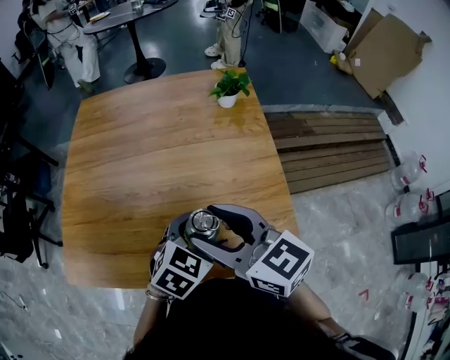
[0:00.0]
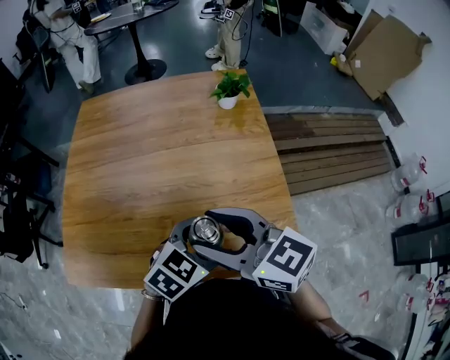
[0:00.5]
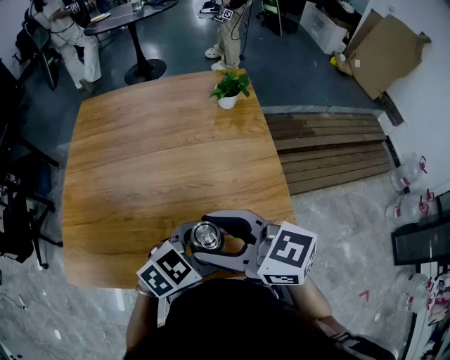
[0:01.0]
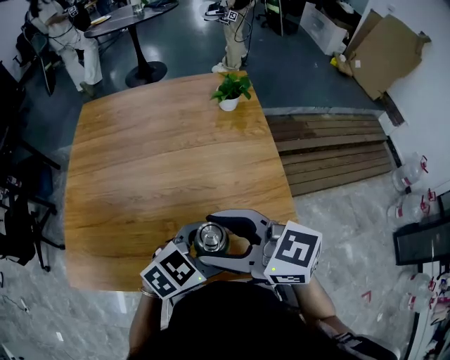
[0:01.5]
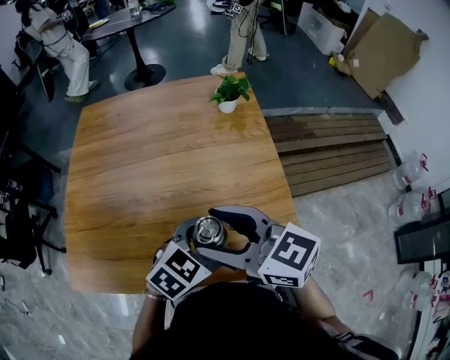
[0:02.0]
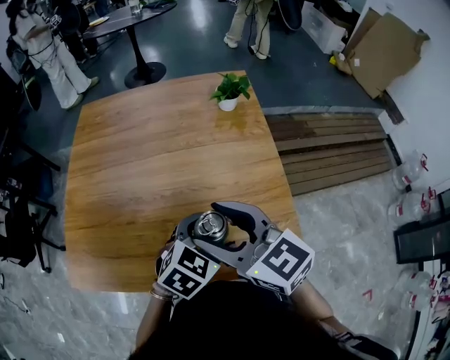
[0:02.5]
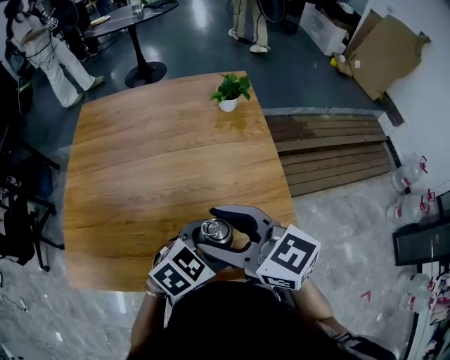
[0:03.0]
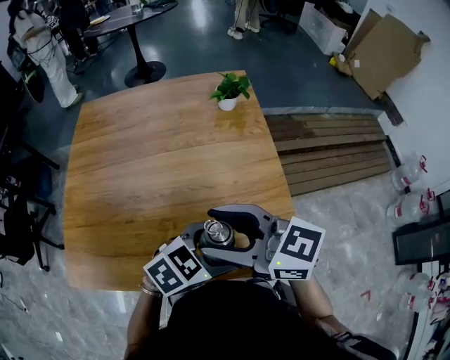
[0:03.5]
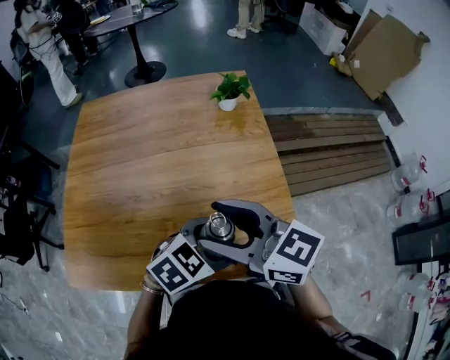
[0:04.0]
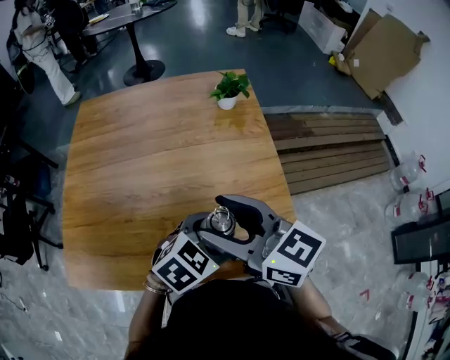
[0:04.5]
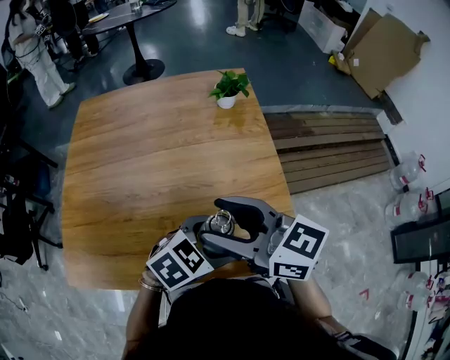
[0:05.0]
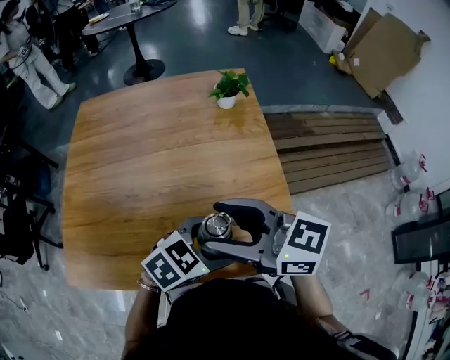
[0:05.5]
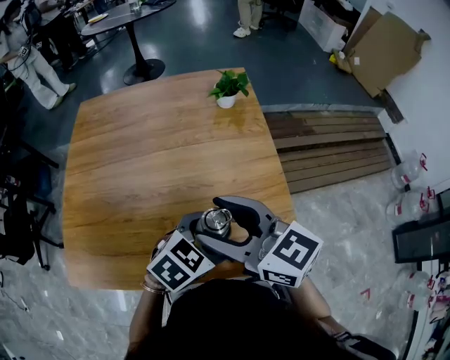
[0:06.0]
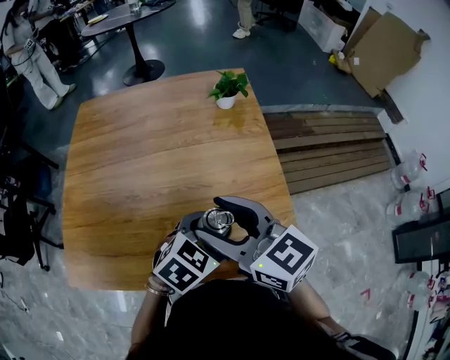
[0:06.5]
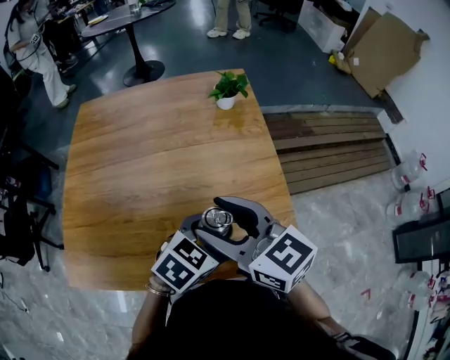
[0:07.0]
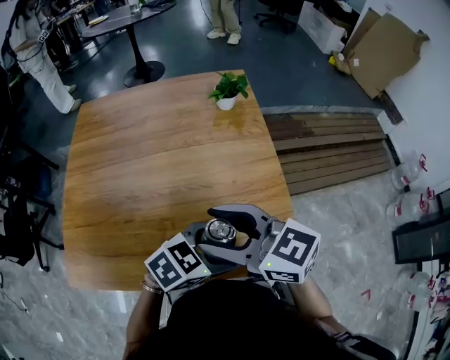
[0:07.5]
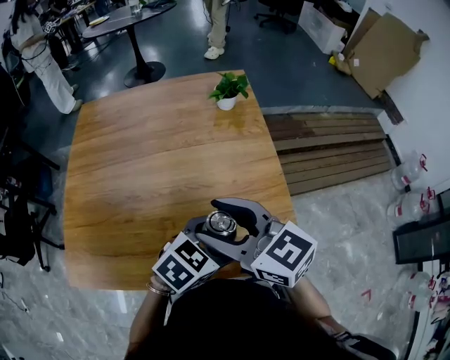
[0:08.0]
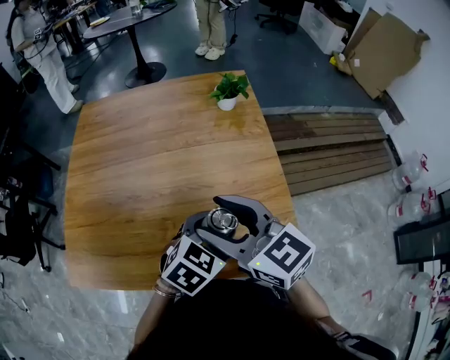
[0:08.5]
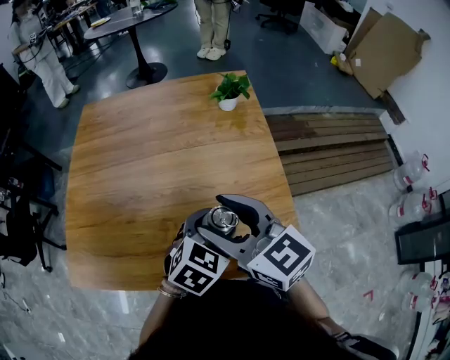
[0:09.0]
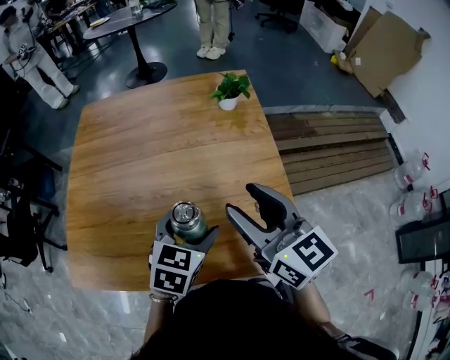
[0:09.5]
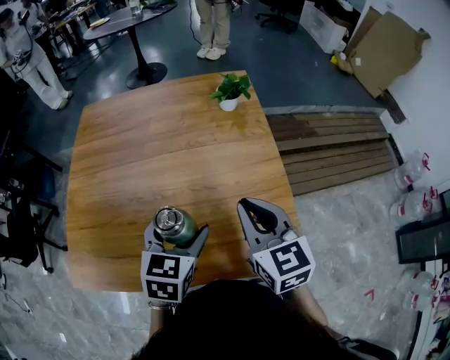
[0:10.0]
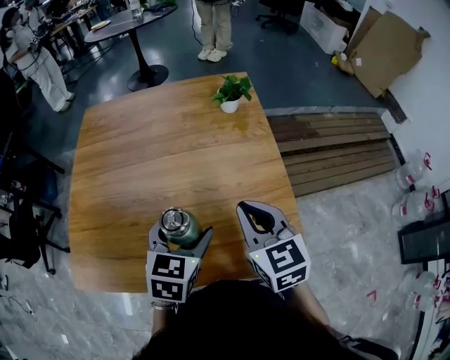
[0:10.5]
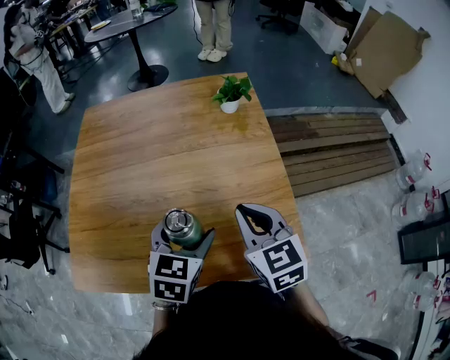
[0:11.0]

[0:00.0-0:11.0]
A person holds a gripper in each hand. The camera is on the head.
0:02.0 to 0:03.5: The grippers stay close to where they were, moving slightly.
0:05.5 to 0:07.5: There are only small adjustments of the grippers.
0:07.5 to 0:09.0: The left gripper moves approximately 5 cm, and turns by roughly 30 degrees.
0:09.0 to 0:11.0: The left gripper is displaced to the left by roughly 10 cm, and changes its angle by some 20 degrees; the right gripper goes approximately 10 cm downward and to the right, turns by approximately 30 degrees, and closes up.

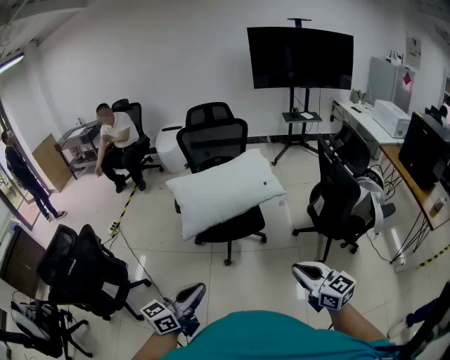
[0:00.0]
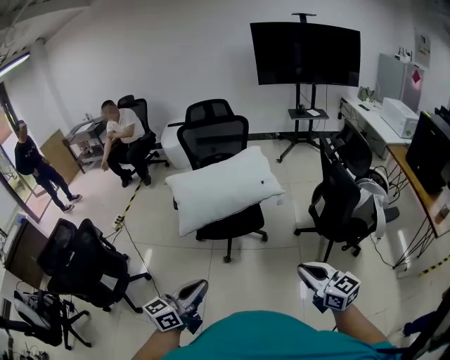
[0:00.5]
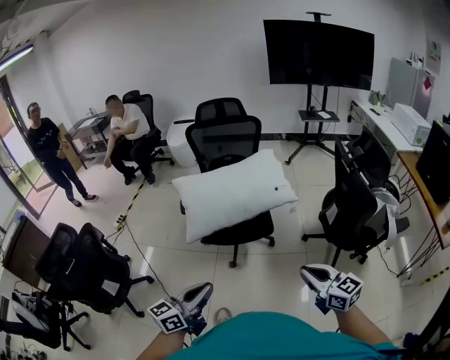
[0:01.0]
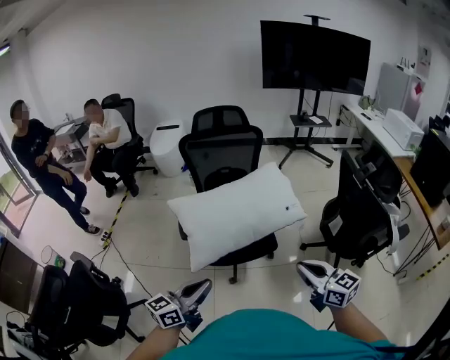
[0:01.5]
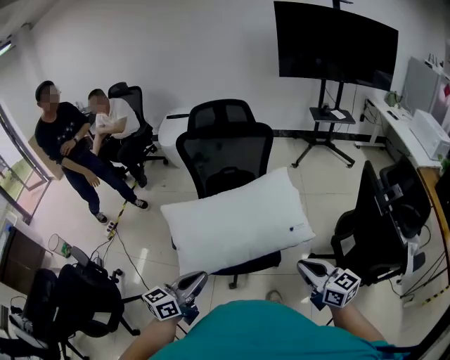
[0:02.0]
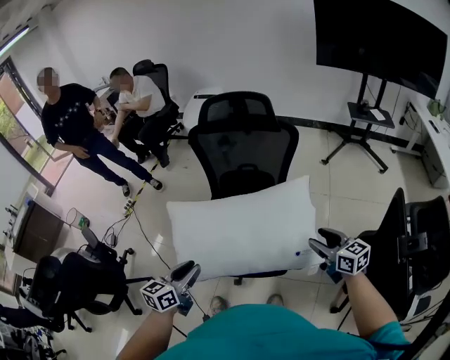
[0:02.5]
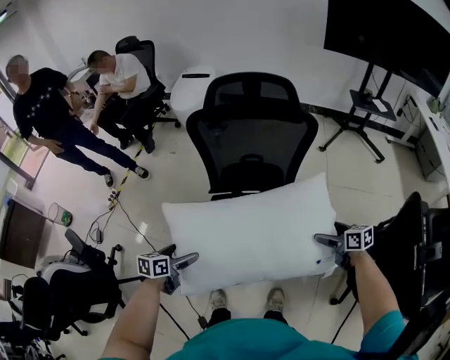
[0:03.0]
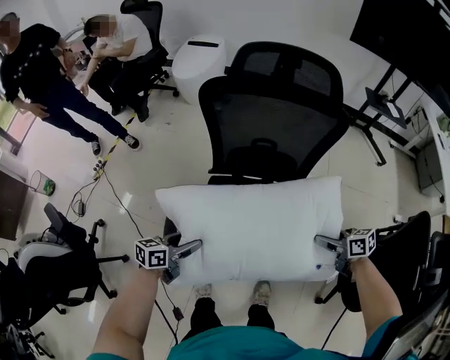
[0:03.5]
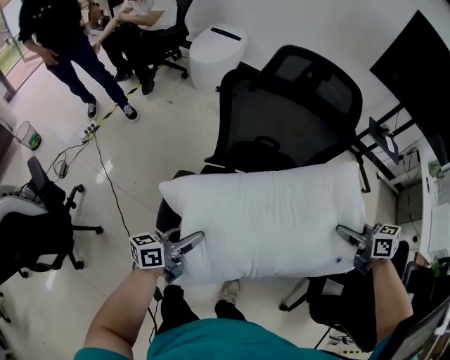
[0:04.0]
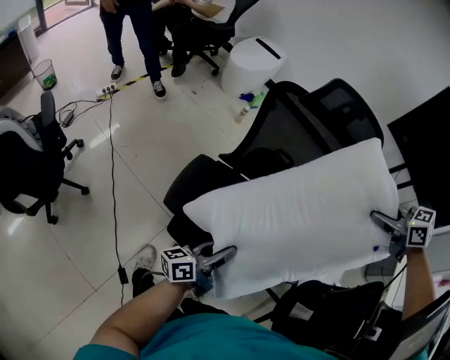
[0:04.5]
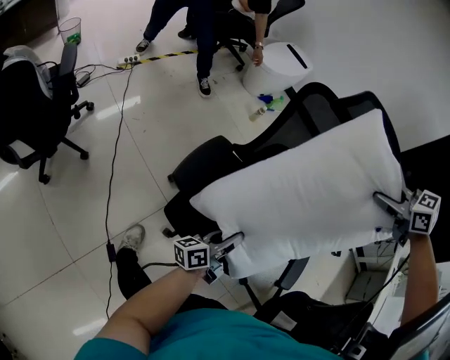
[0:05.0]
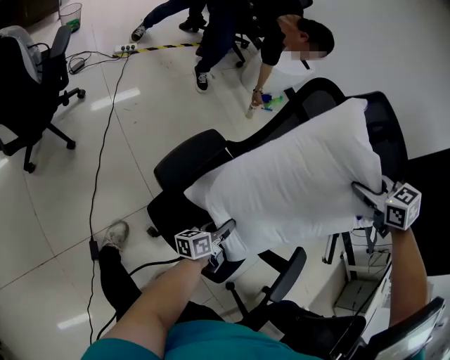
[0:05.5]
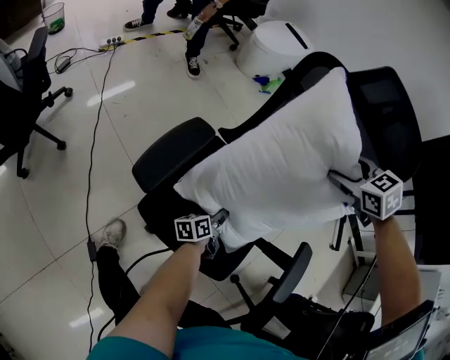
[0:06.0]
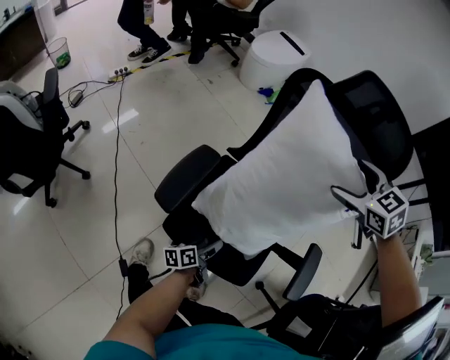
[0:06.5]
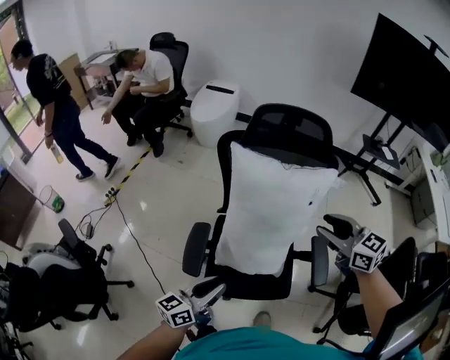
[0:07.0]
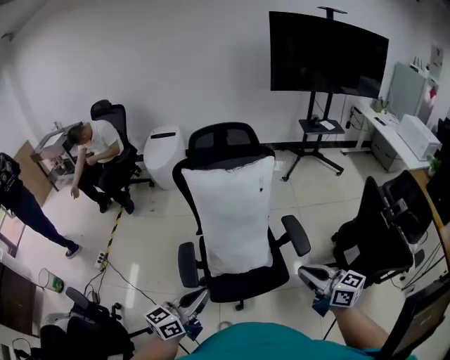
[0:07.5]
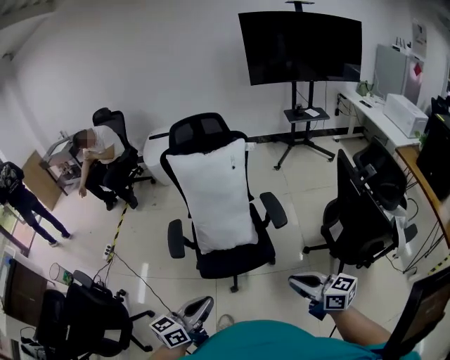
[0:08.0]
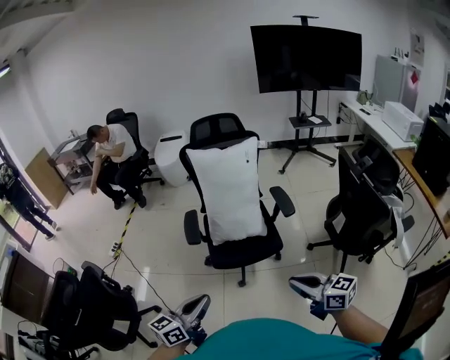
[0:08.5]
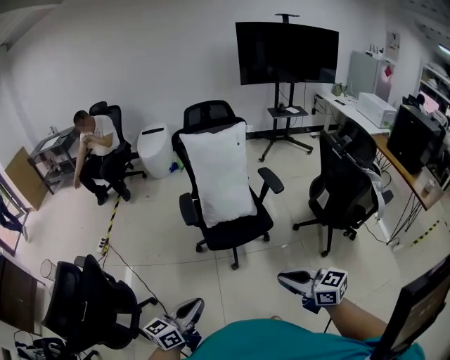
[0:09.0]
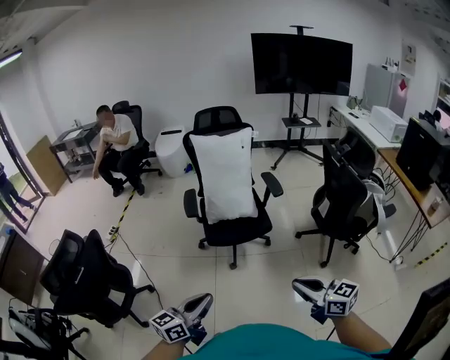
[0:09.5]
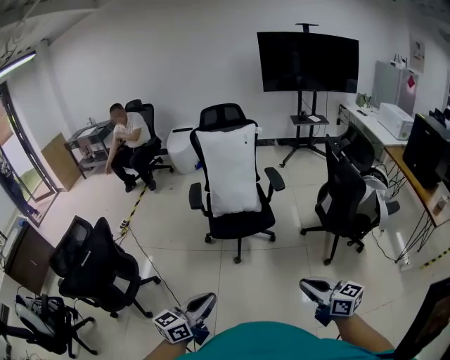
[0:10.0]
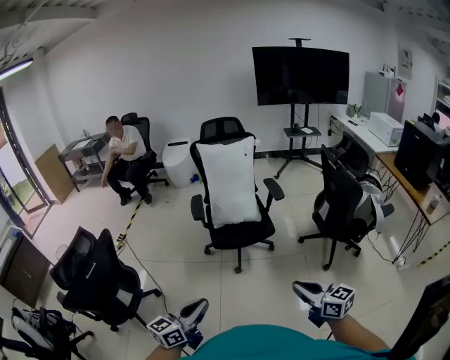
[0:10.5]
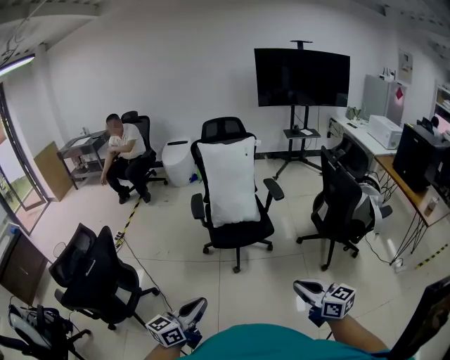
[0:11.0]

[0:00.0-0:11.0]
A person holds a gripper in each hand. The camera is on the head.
0:00.0 to 0:02.0: The grippers both shift forward by some 35 cm.
0:02.0 to 0:03.5: The two grippers go roughly 35 cm forward and downward. The right gripper rotates about 40 degrees, and opens, then closes once more. The left gripper rotates roughly 30 degrees, and opens.
0:03.5 to 0:05.5: The left gripper travels to the right and downward by approximately 20 cm, and turns by roughly 60 degrees. The right gripper heads forward and upward, covering roughly 35 cm, and rotates around the line of its fingers by roughly 70 degrees, counterclockwise from behind.
0:05.5 to 0:07.5: The right gripper reaches about 10 cm downward, then returns, angles its fingers upward, by about 50 degrees, and opens and closes again. The left gripper moves upward, some 35 cm, rotates approximately 70 degrees, and opens, then closes once more.
0:07.5 to 0:09.0: The two grippers travel together, backward, approximately 40 cm.
0:09.0 to 0:11.0: The left gripper goes some 15 cm backward. The right gripper heads backward and to the right, covering approximately 20 cm.

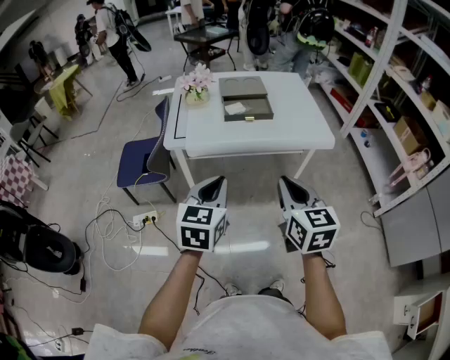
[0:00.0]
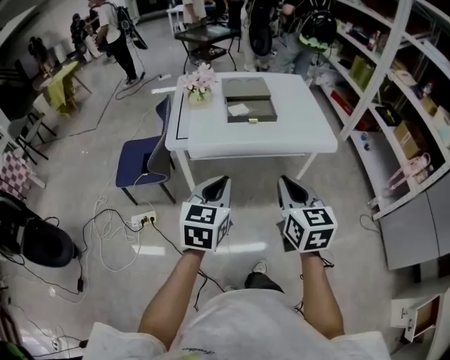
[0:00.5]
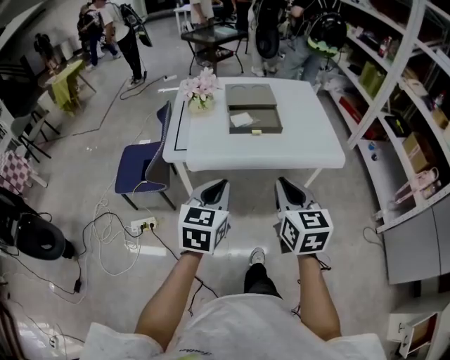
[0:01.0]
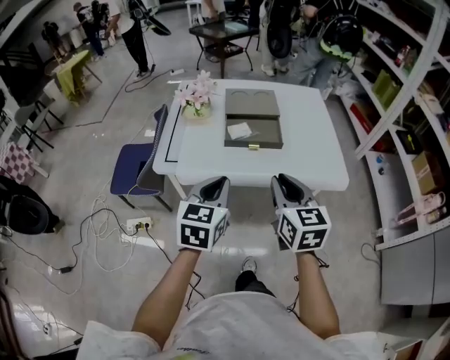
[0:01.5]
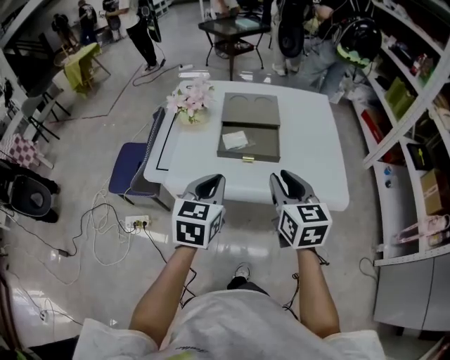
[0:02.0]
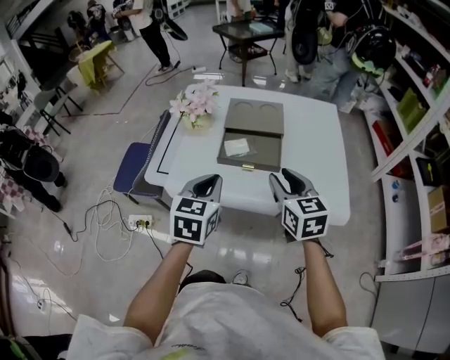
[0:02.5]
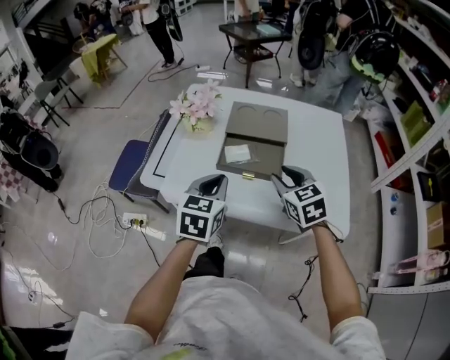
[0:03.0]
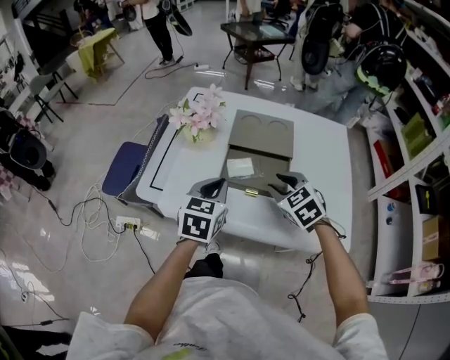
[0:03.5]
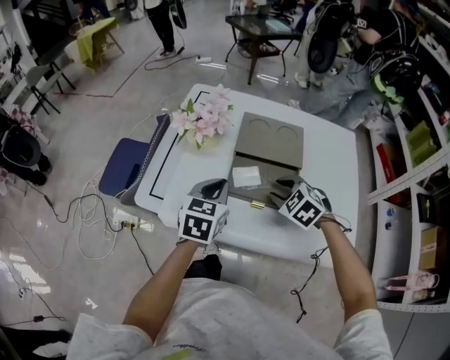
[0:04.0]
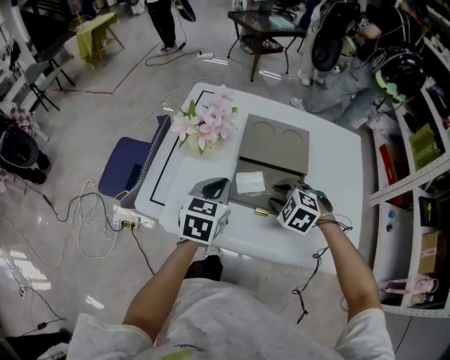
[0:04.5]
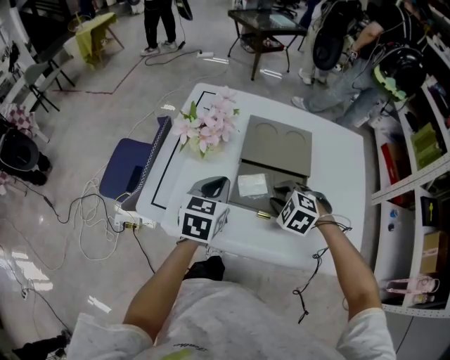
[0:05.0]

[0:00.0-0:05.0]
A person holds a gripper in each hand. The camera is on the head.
0:00.0 to 0:02.5: Both grippers move forward, some 30 cm. The right gripper opens up.
0:02.5 to 0:05.0: The left gripper is displaced forward by some 20 cm; the right gripper moves forward and downward, approximately 25 cm, and tilts its fingers approximately 40 degrees downward.
